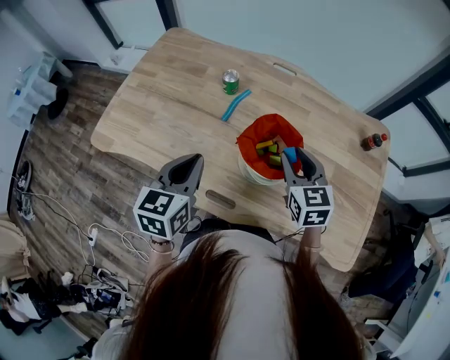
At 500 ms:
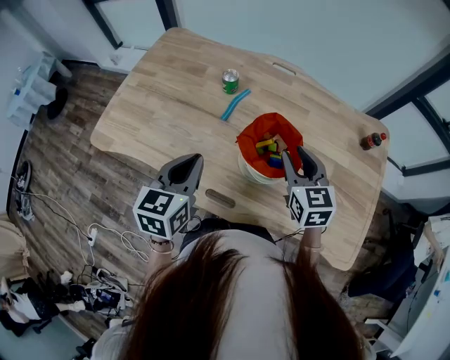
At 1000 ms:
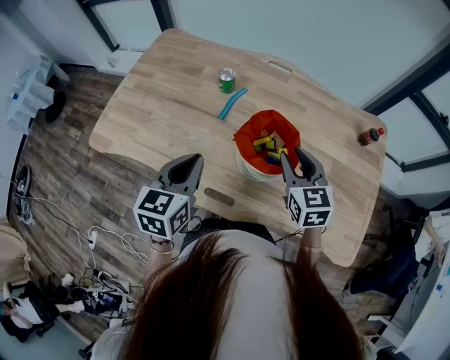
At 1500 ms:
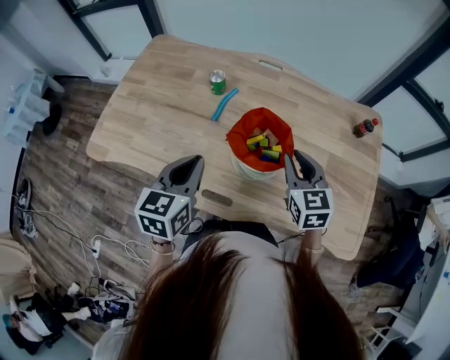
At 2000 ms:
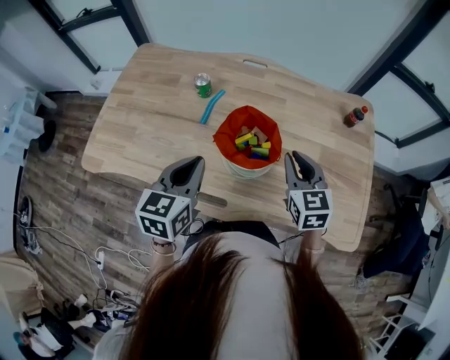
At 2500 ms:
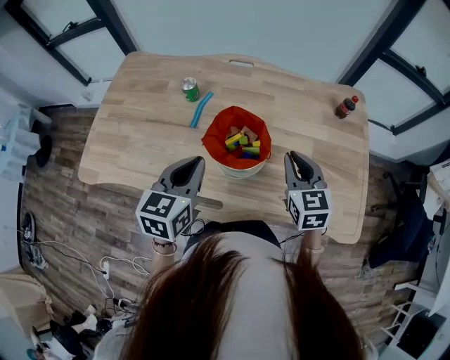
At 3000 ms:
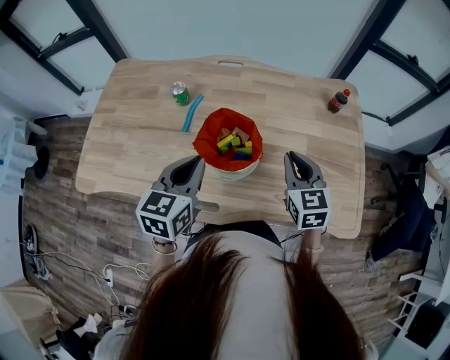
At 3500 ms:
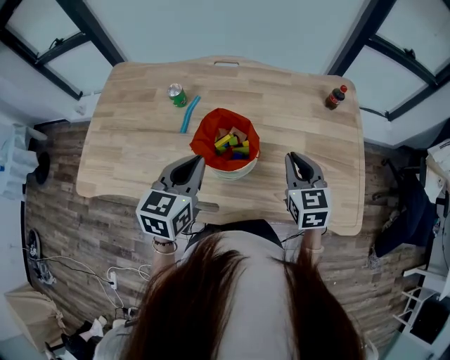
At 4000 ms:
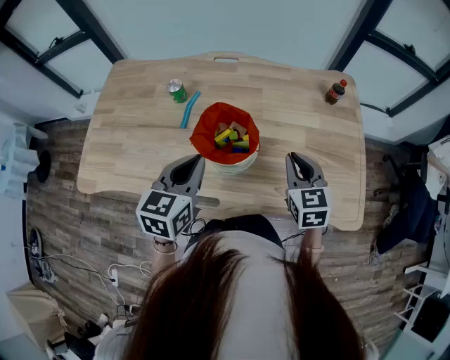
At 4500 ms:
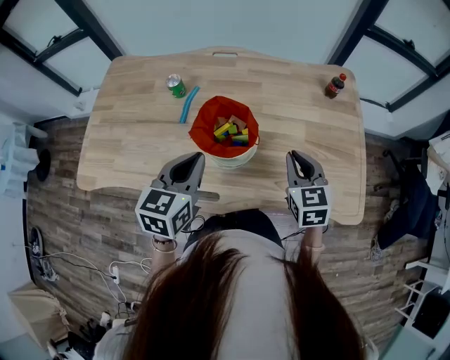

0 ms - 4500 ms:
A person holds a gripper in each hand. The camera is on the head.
0 ms - 2000 ms: The two grippers go some 5 cm to the right. The right gripper closes its fingers.
2000 ms - 4500 ms: Both grippers move to the right, approximately 5 cm.

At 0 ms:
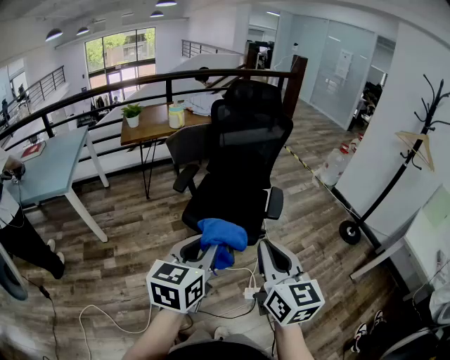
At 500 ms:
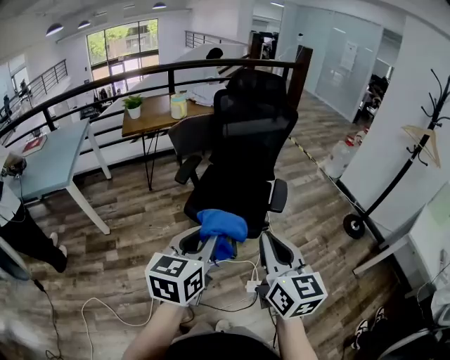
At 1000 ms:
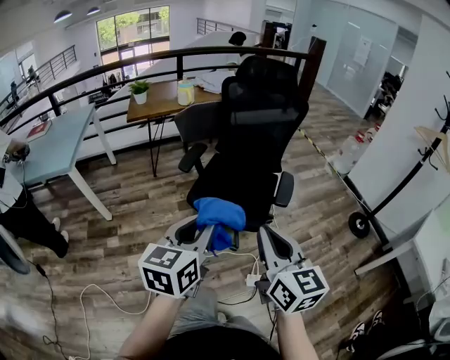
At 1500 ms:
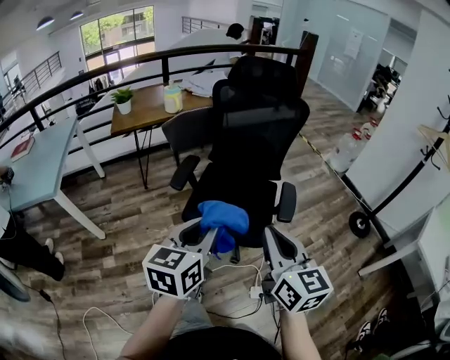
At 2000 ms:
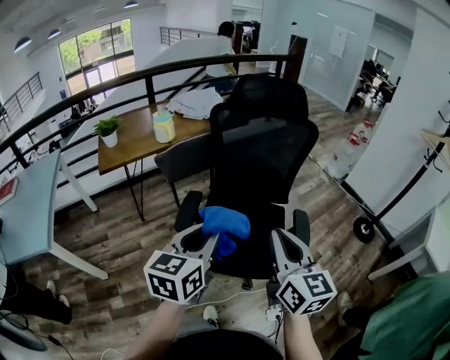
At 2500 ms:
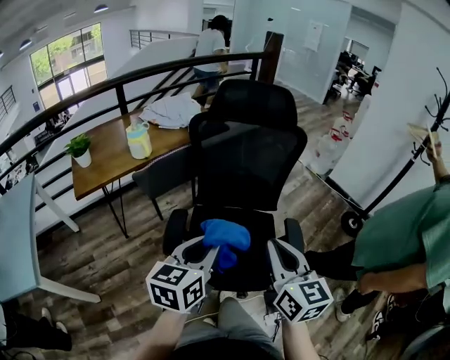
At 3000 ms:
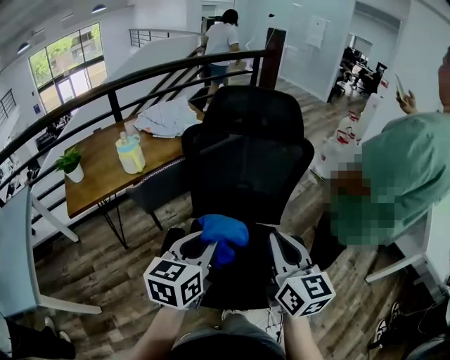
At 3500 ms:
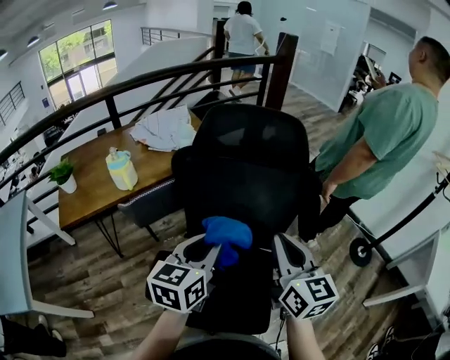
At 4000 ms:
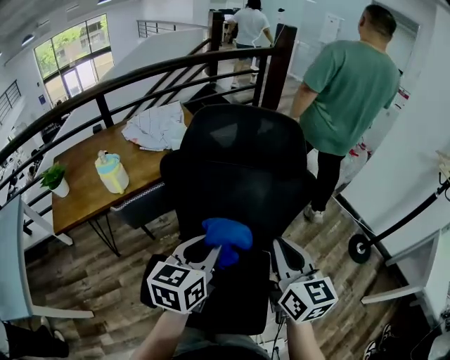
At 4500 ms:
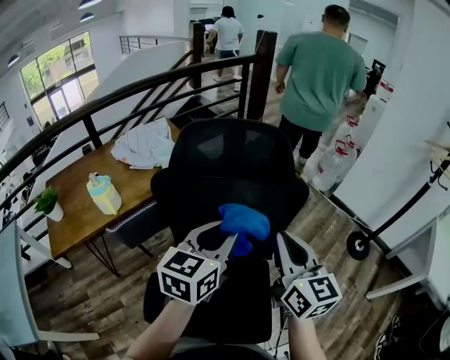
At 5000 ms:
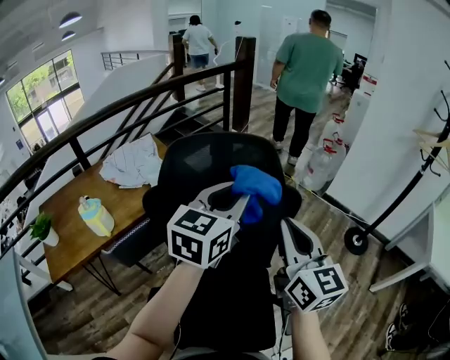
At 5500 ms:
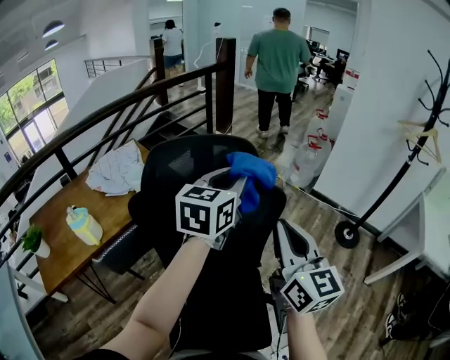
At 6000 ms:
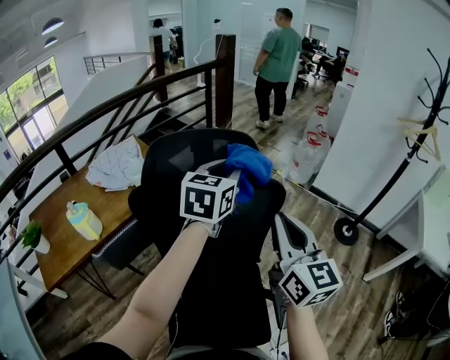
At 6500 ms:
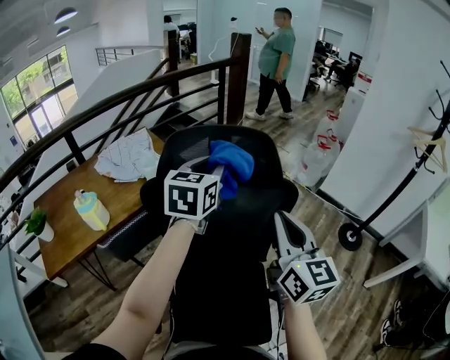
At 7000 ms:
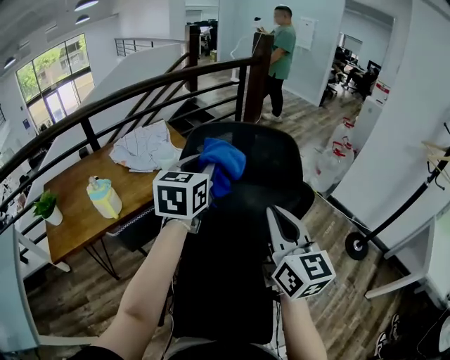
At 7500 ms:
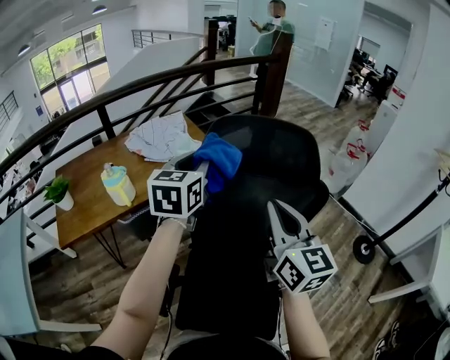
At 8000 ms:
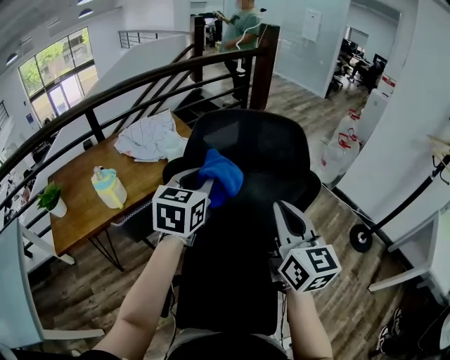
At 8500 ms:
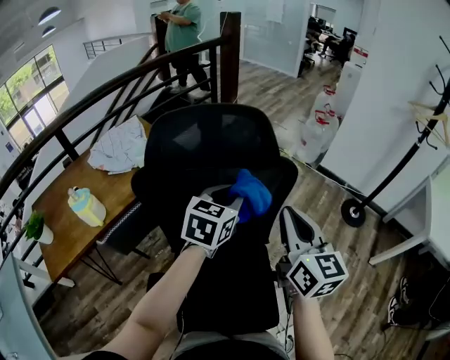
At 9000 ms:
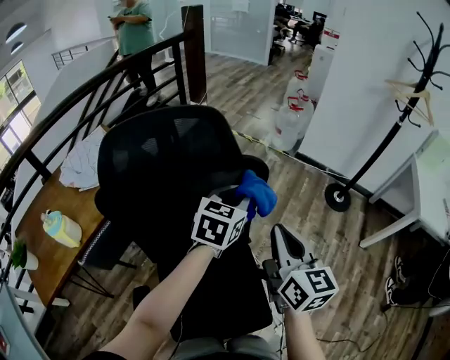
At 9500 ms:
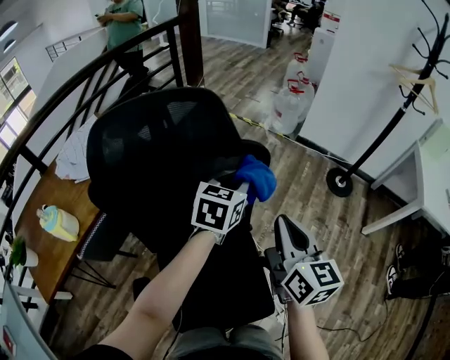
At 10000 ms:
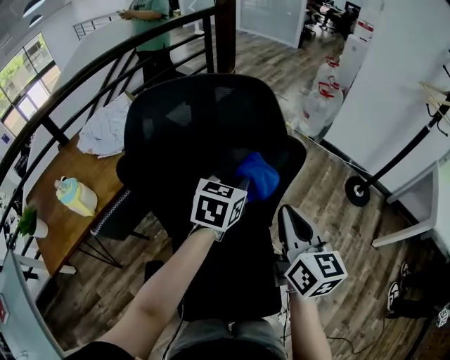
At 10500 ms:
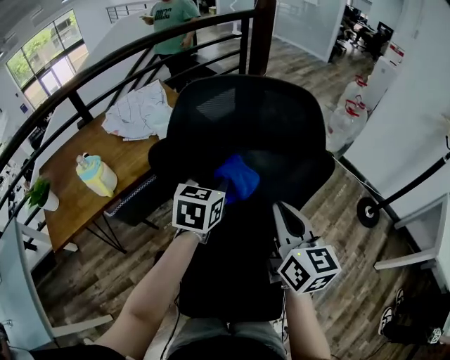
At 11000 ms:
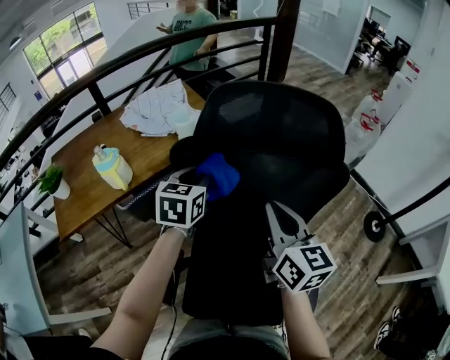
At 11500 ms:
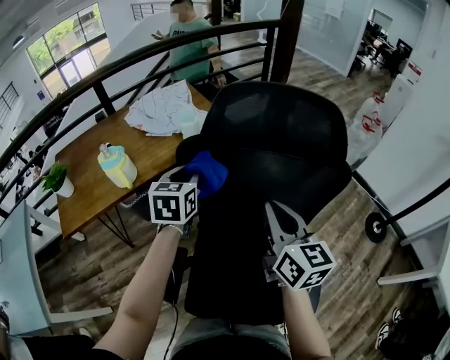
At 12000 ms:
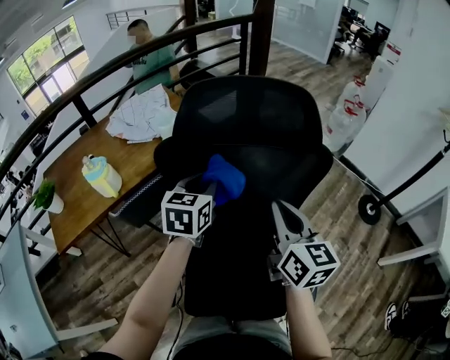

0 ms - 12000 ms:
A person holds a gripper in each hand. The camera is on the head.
0 ms - 2000 ms: The grippers both shift forward by roughly 30 cm.
2000 ms - 4000 ms: Both grippers move forward, approximately 35 cm.
4000 ms - 6000 ms: The left gripper shifts approximately 25 cm forward, upward and to the right, and rotates about 20 degrees; the right gripper travels upward, to the right and forward by approximately 10 cm, and changes its angle by approximately 20 degrees.
6000 ms - 8000 ms: The right gripper heads to the left, covering about 10 cm; the left gripper is displaced to the left by about 20 cm.
8000 ms - 10000 ms: The right gripper travels downward and to the right by roughly 15 cm. The left gripper goes approximately 25 cm to the right, downward and forward, and turns by roughly 20 degrees.

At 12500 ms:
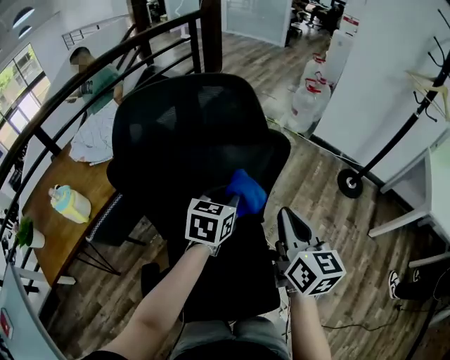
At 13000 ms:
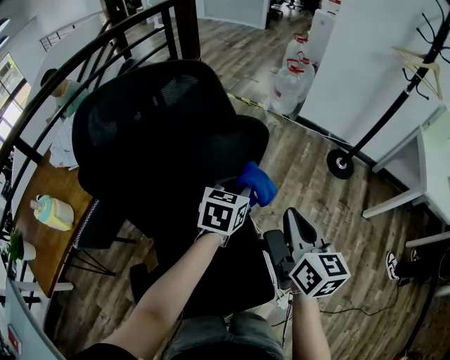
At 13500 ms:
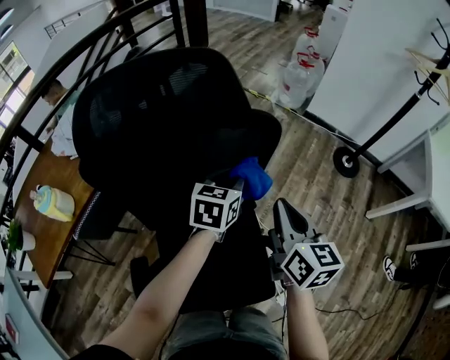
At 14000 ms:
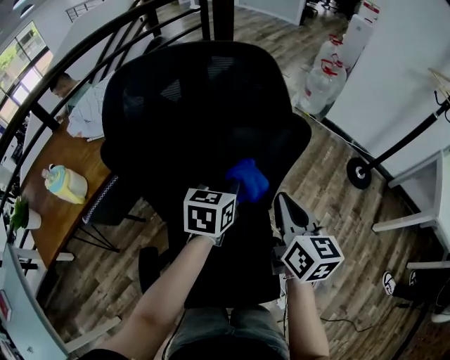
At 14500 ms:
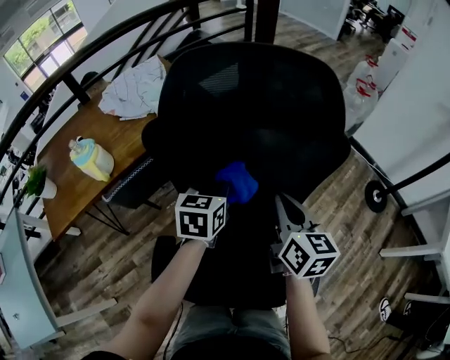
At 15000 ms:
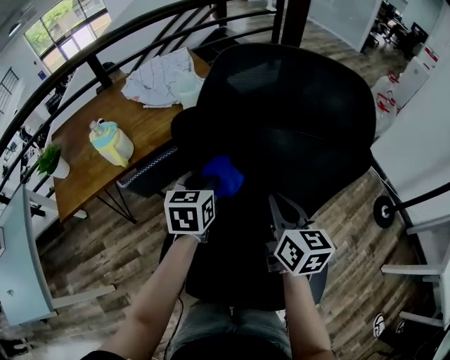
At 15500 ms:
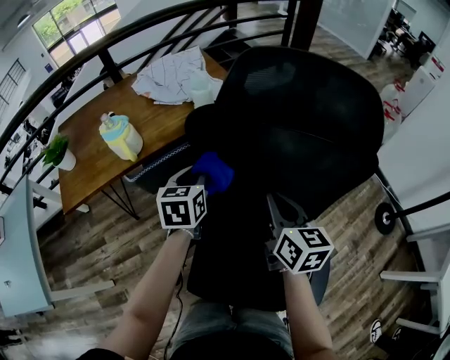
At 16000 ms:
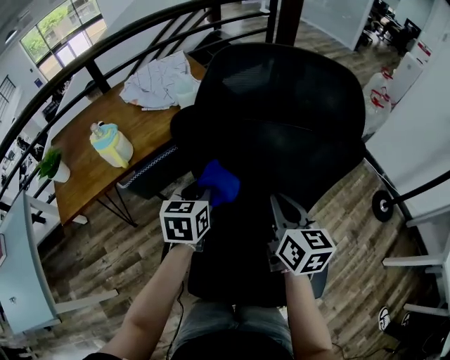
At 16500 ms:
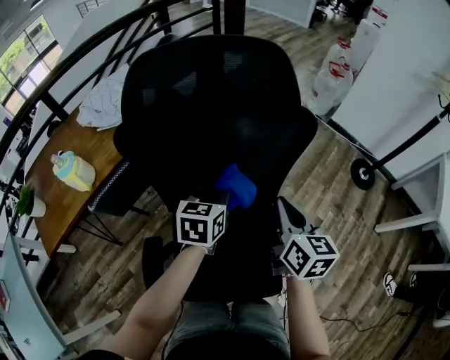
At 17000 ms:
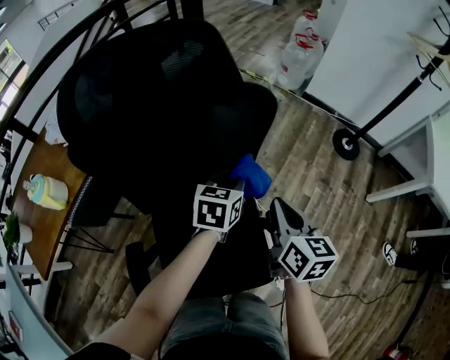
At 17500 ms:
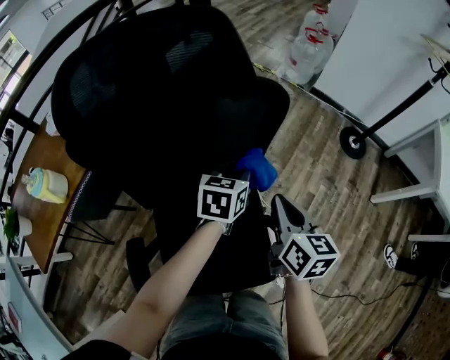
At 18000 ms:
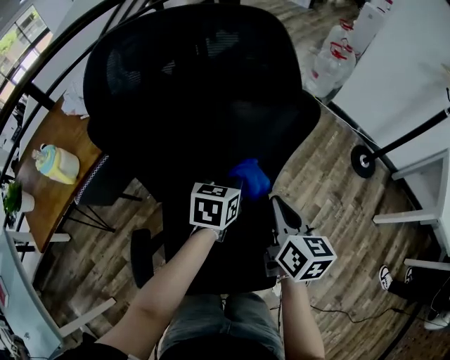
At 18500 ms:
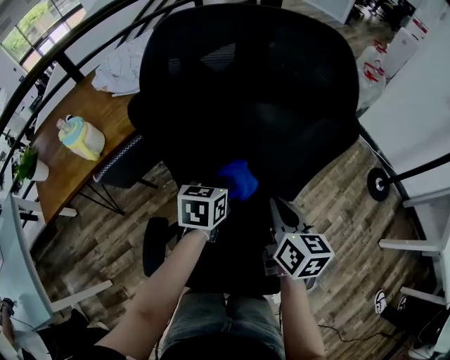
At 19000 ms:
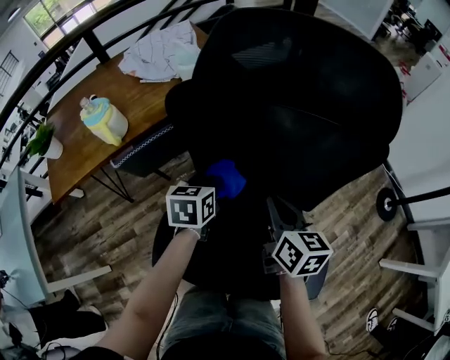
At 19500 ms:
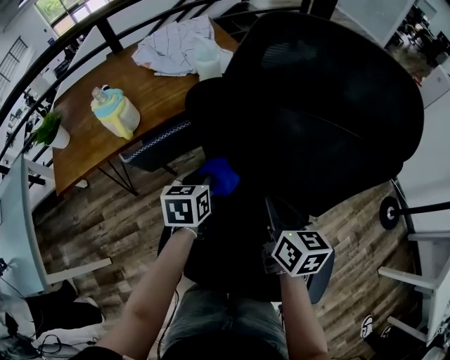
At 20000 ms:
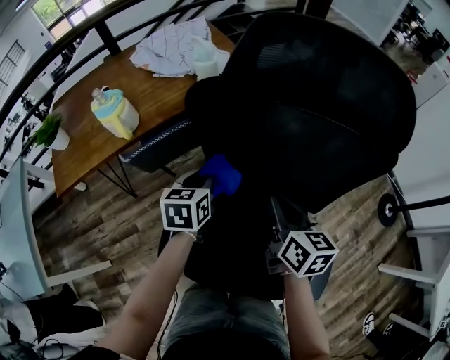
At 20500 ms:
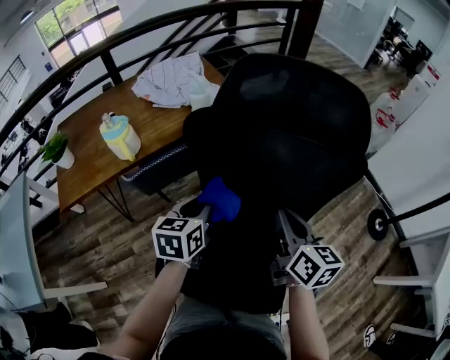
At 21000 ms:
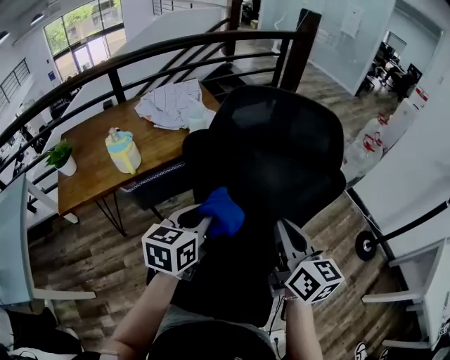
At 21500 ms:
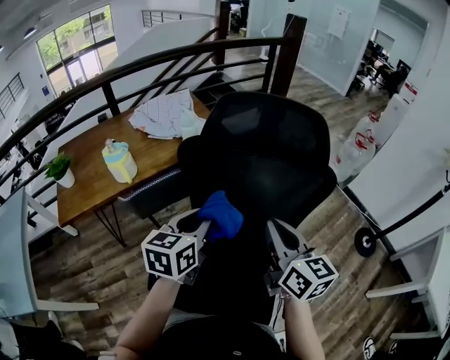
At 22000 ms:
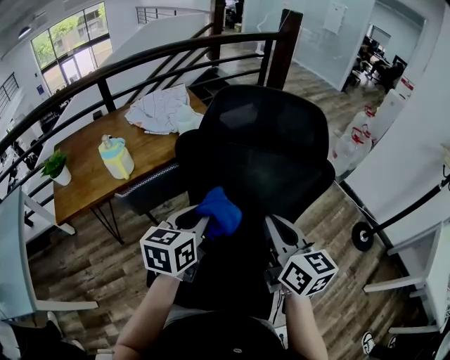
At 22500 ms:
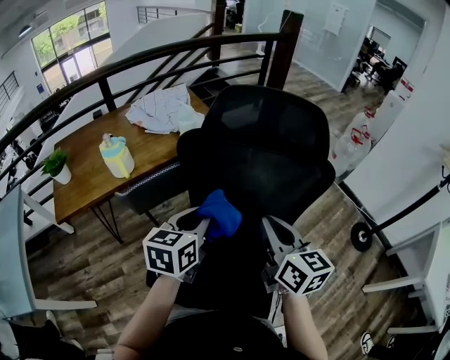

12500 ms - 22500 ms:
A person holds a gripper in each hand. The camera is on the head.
12500 ms - 14500 ms: The left gripper moves approximately 15 cm, and turns by some 20 degrees. The right gripper moves roughly 15 cm.
14500 ms - 16500 ms: The right gripper shifts by roughly 10 cm.
16500 ms - 18500 ms: The left gripper shifts roughly 5 cm downward, and reaches roughly 15 cm to the right, then returns; the right gripper is displaced to the left by approximately 5 cm.
18500 ms - 20500 ms: The left gripper goes approximately 15 cm to the left and upward. Meanwhile the right gripper is displaced upward and to the left by approximately 10 cm.
20500 ms - 22500 ms: Both grippers move upward and backward, some 10 cm.
